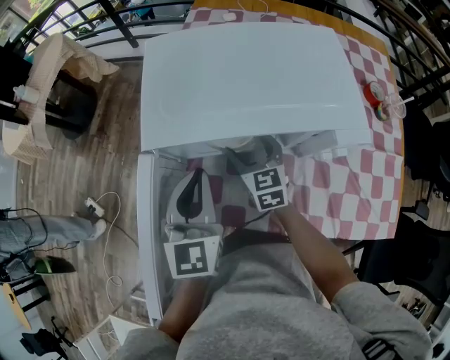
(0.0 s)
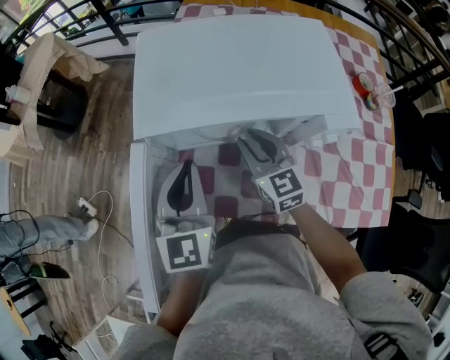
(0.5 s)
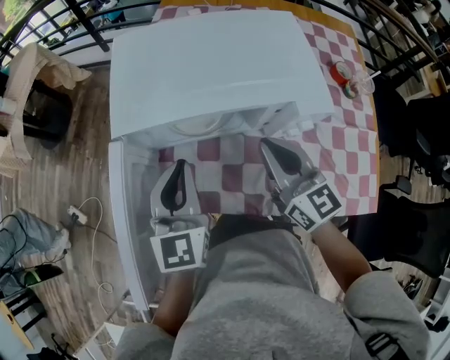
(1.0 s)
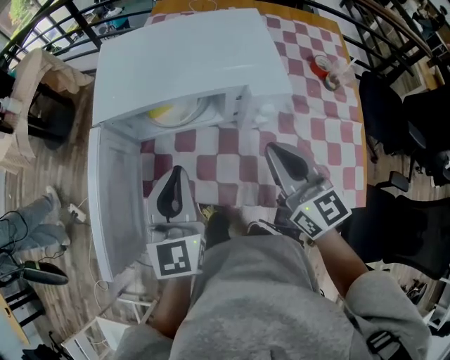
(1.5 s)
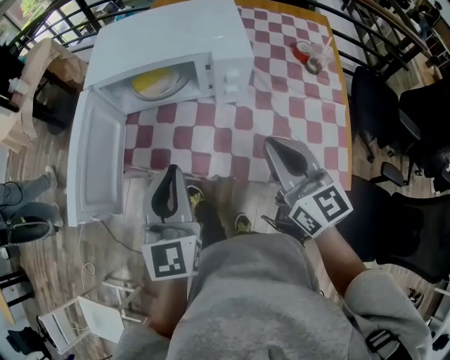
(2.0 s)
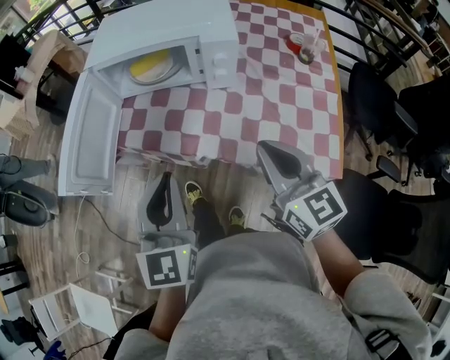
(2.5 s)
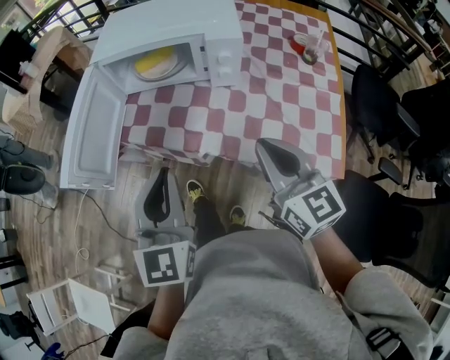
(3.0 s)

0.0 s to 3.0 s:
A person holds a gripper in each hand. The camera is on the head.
0.0 to 1.5 s: The right gripper moves backward, upward and to the right, some 30 cm, changes its angle by approximately 20 degrees, and closes up. The left gripper travels backward and to the right by about 15 cm.
1.5 to 3.0 s: Both grippers travel together backward, about 20 cm.

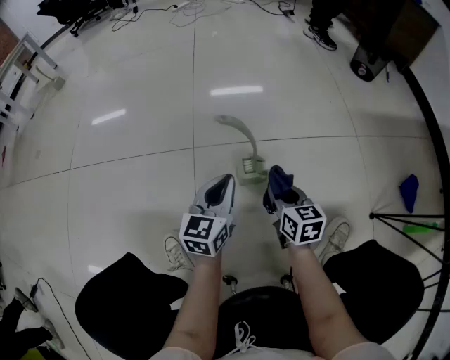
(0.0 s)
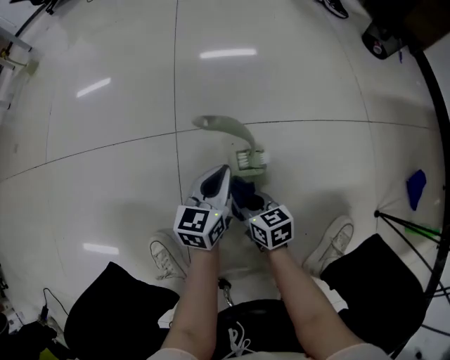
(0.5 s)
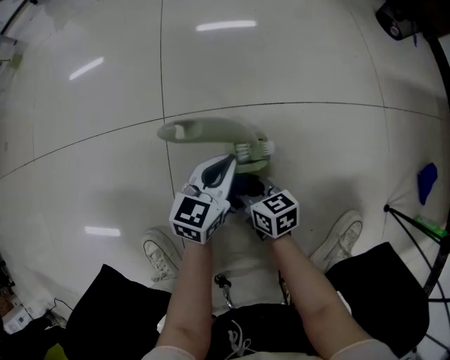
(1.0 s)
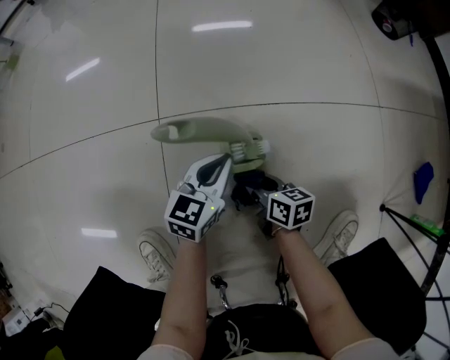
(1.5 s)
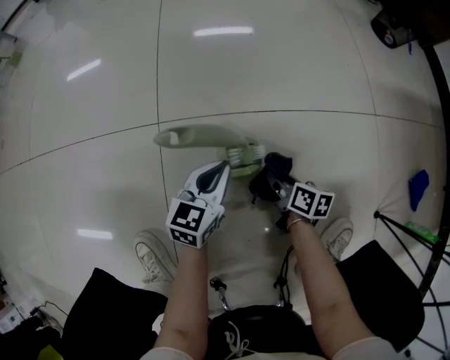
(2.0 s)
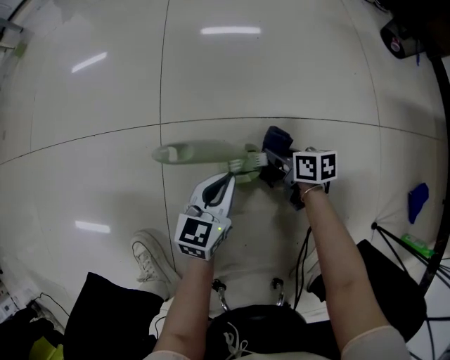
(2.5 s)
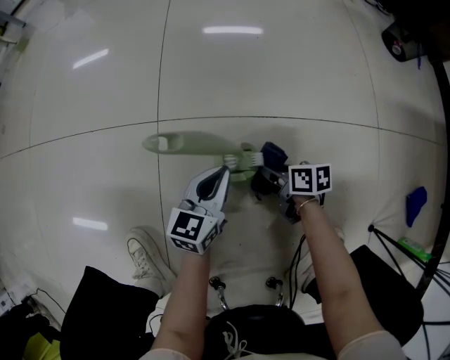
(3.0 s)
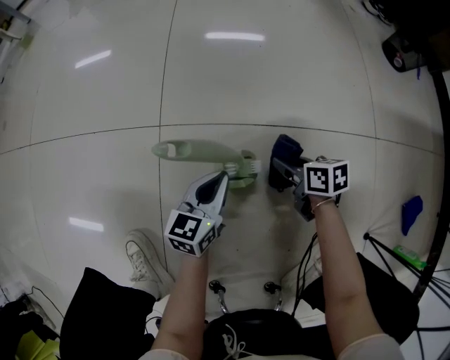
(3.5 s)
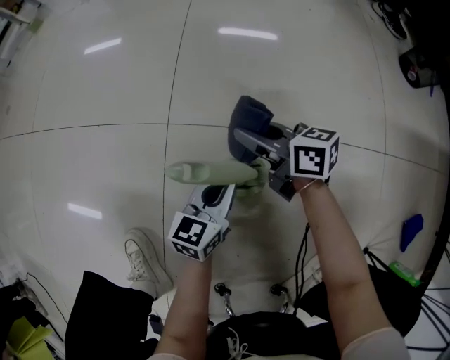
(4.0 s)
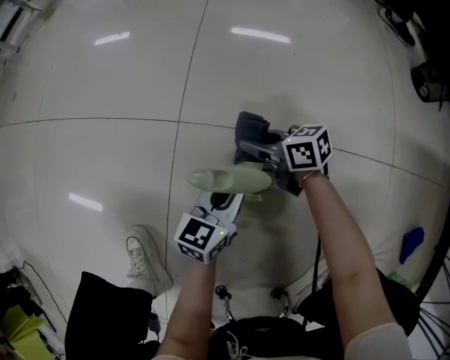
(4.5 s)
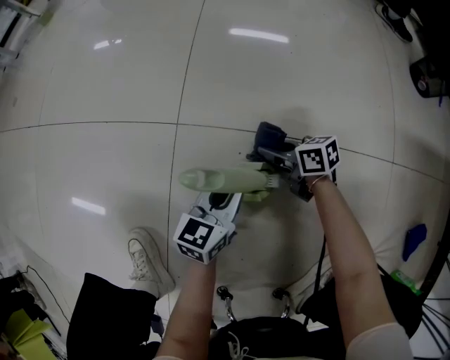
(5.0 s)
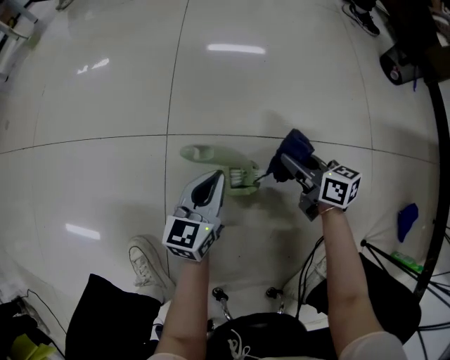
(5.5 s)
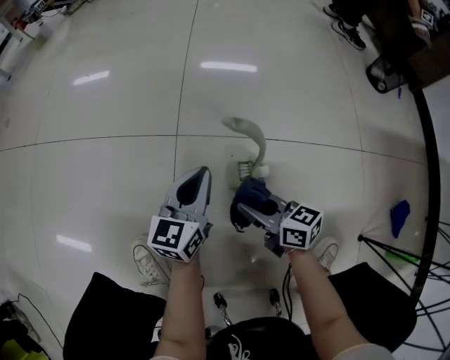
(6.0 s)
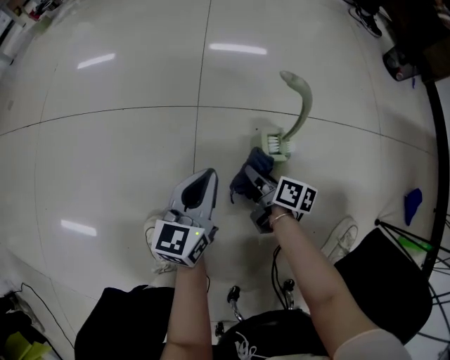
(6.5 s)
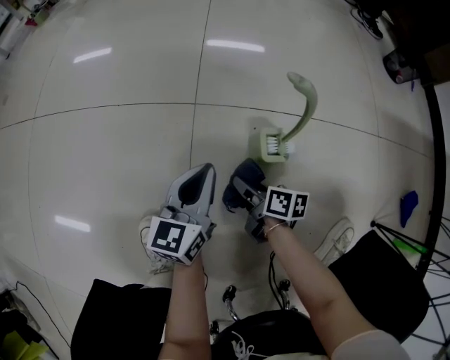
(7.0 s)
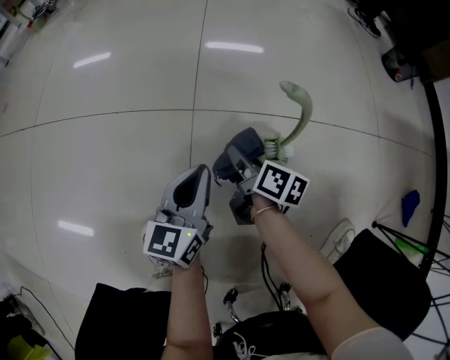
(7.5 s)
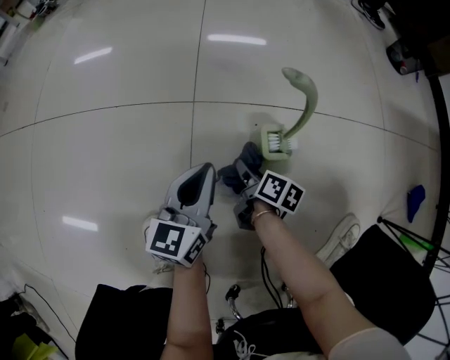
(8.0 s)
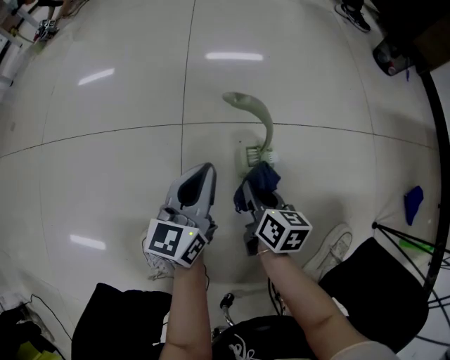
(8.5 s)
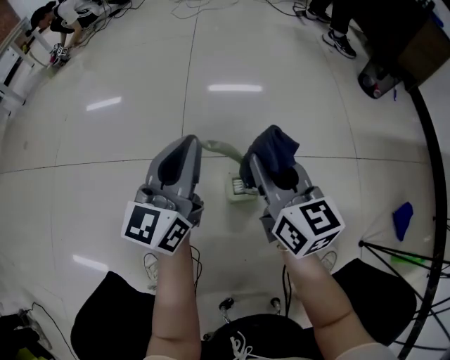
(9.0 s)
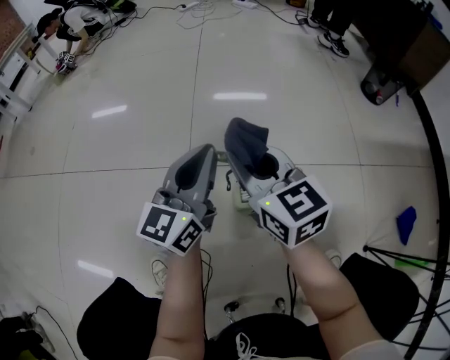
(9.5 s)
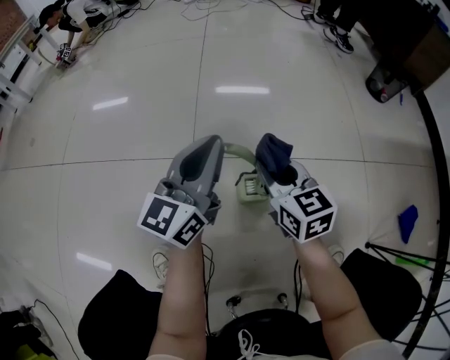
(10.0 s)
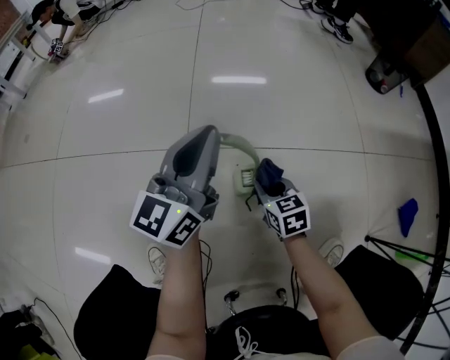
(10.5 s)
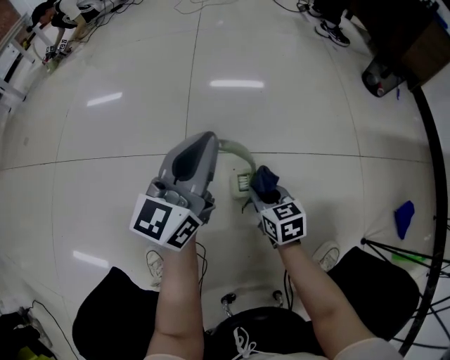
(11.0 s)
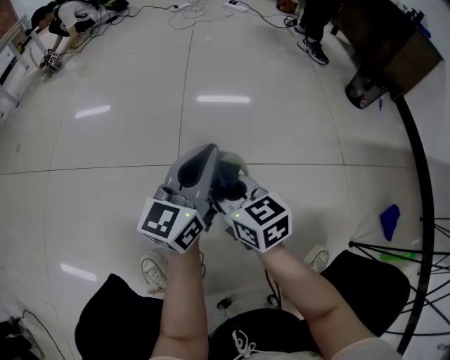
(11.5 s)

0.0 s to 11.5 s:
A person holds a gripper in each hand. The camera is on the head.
0.0 to 2.0 s: The left gripper heads downward and forward, covering approximately 15 cm. The right gripper travels downward by about 15 cm, and rotates roughly 30 degrees.
2.0 to 4.0 s: The right gripper goes forward and backward, about 15 cm each way, reversing 2 times, and rotates some 50 degrees.
4.0 to 6.0 s: The right gripper moves backward, some 20 cm. Meanwhile the left gripper goes roughly 15 cm upward and to the left.
6.0 to 7.5 s: The right gripper heads forward, downward and to the left, covering roughly 10 cm, and turns by some 40 degrees. The left gripper heads to the left, covering roughly 5 cm.
7.5 to 9.5 s: The left gripper shifts some 25 cm upward, to the right and forward. The right gripper heads upward, covering some 30 cm, and rolls counterclockwise, seen from behind, by approximately 60 degrees.
9.5 to 11.5 s: The right gripper heads to the left, covering approximately 5 cm, and travels downward and back again, about 25 cm each way.

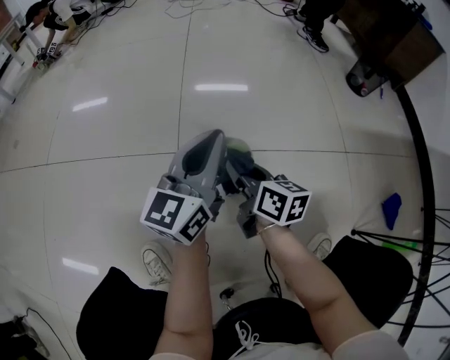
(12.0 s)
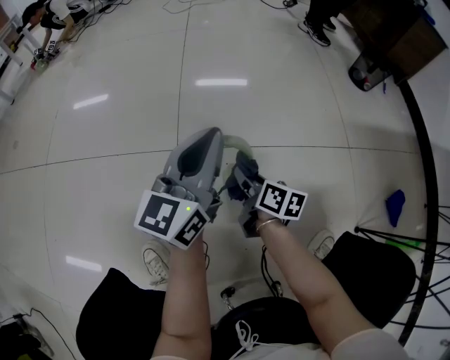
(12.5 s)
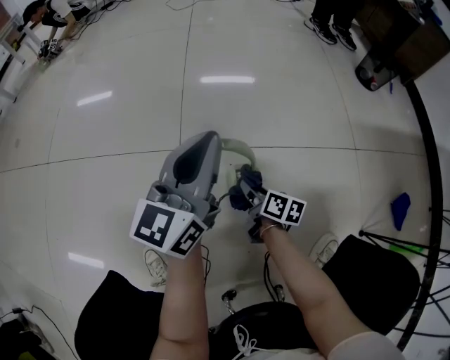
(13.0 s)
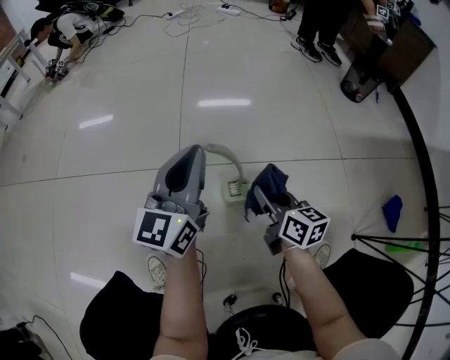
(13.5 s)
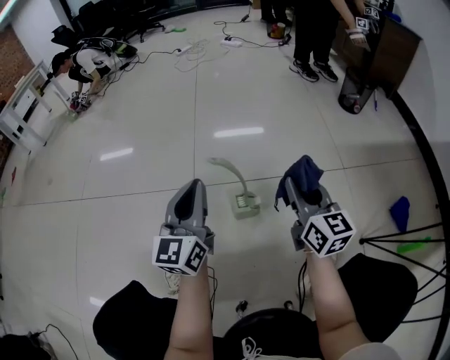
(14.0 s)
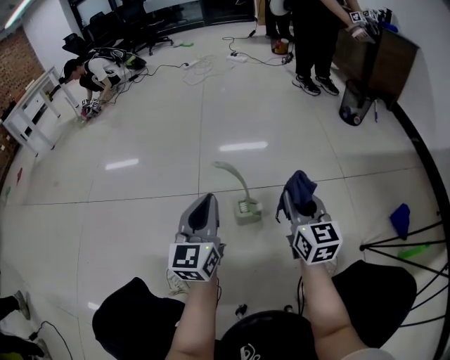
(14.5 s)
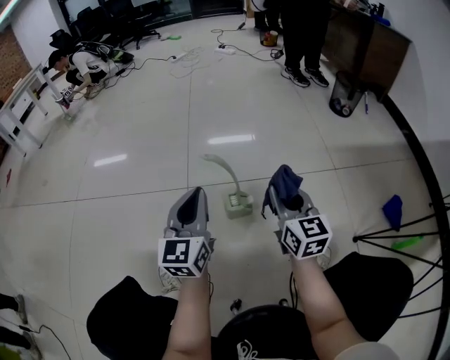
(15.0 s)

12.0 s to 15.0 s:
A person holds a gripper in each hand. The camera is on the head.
12.0 to 13.5 s: The right gripper goes about 10 cm to the right, and goes downward and returns, some 15 cm each way.
13.5 to 15.0 s: The right gripper shifts approximately 15 cm upward, to the right and backward, and swivels roughly 30 degrees. Meanwhile the left gripper heads backward, covering some 10 cm.

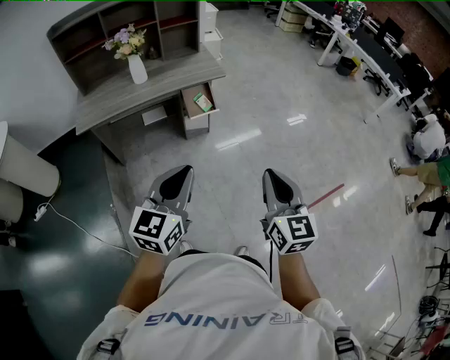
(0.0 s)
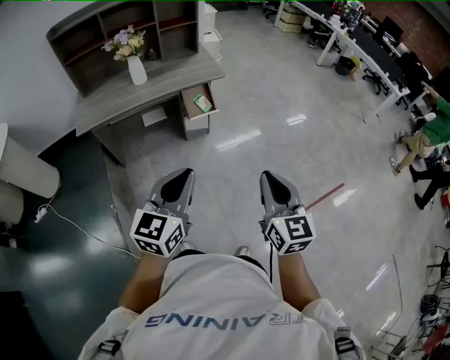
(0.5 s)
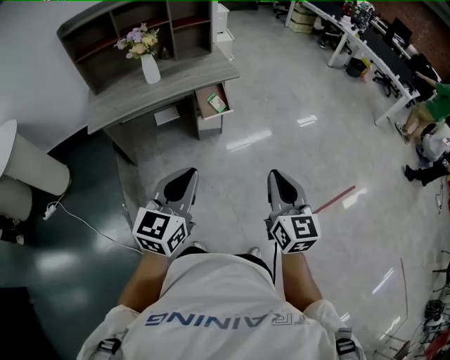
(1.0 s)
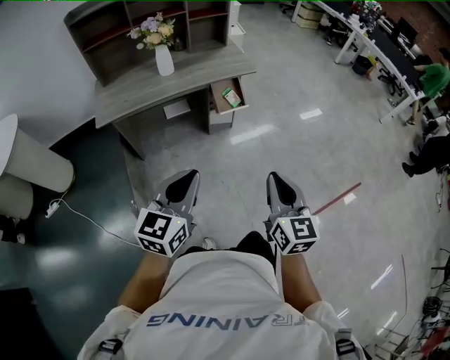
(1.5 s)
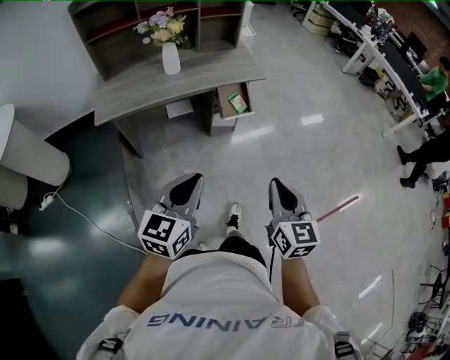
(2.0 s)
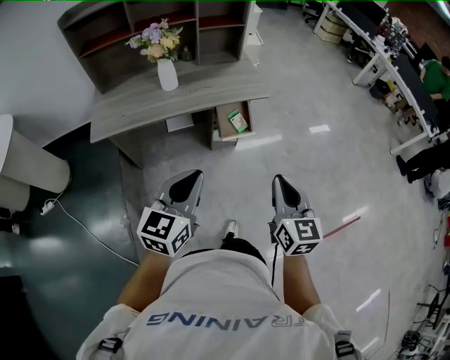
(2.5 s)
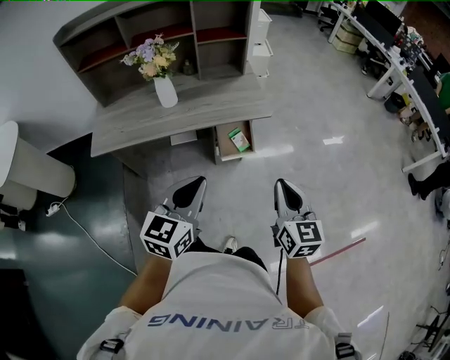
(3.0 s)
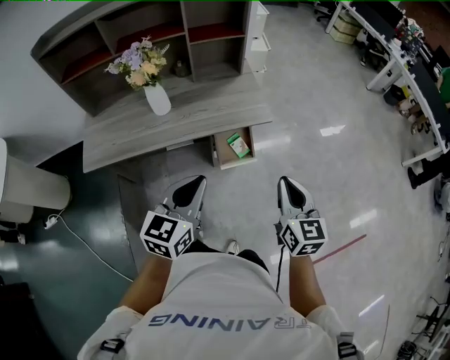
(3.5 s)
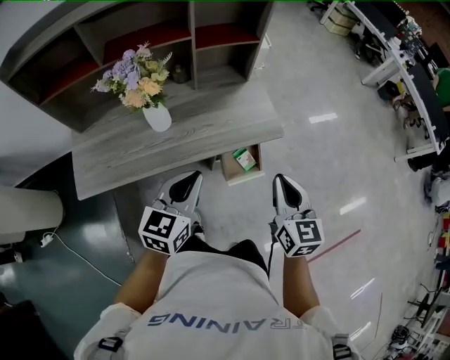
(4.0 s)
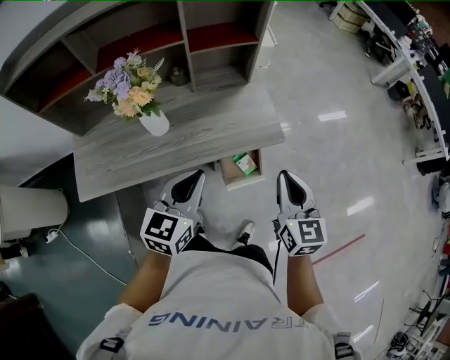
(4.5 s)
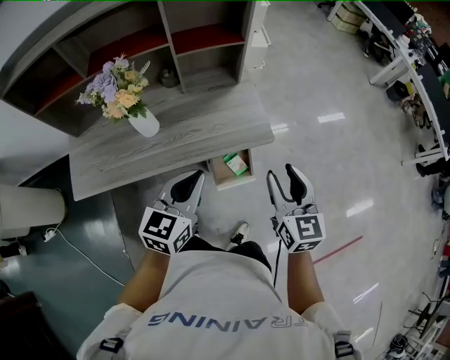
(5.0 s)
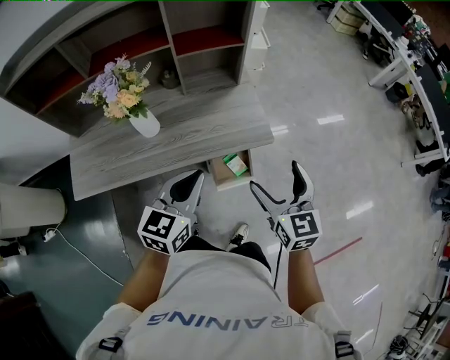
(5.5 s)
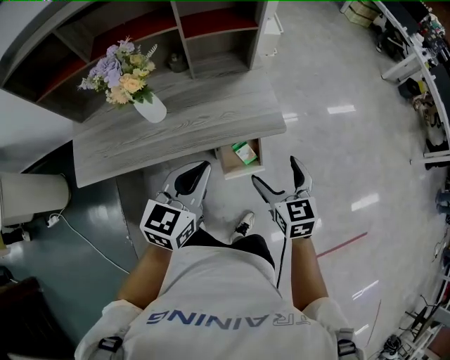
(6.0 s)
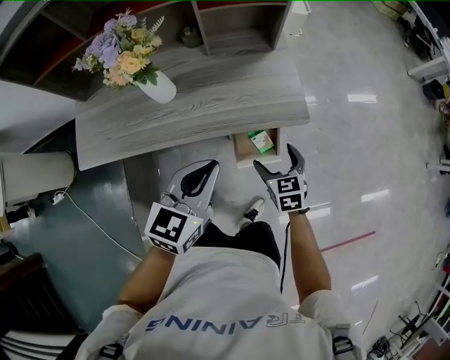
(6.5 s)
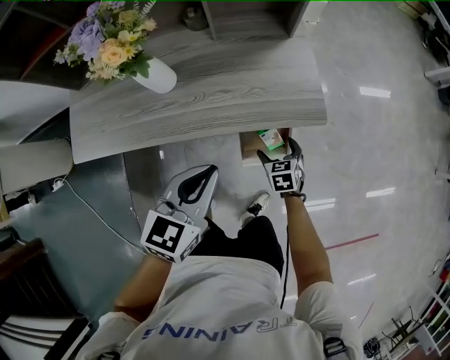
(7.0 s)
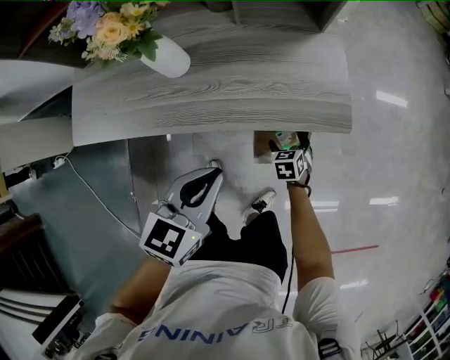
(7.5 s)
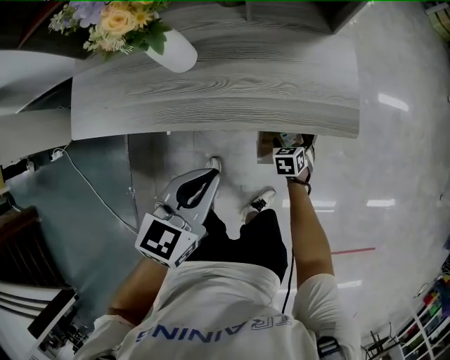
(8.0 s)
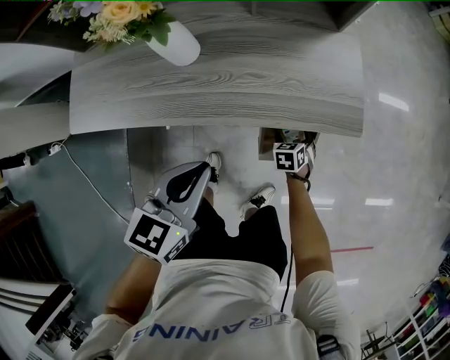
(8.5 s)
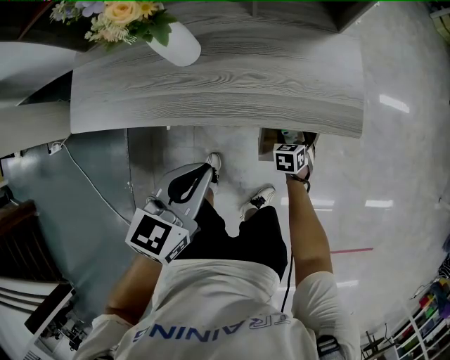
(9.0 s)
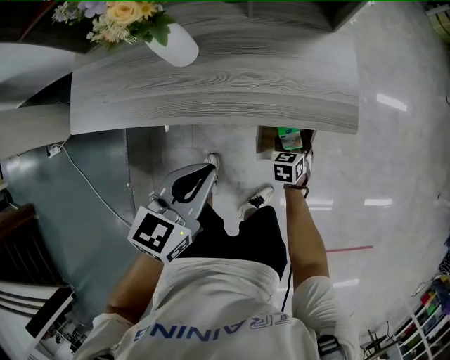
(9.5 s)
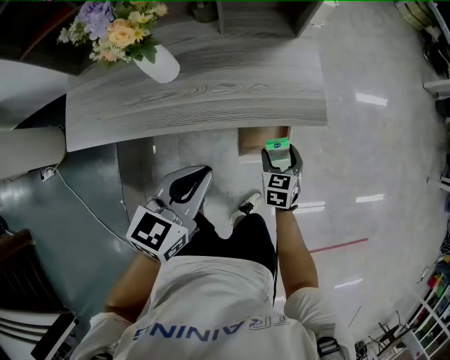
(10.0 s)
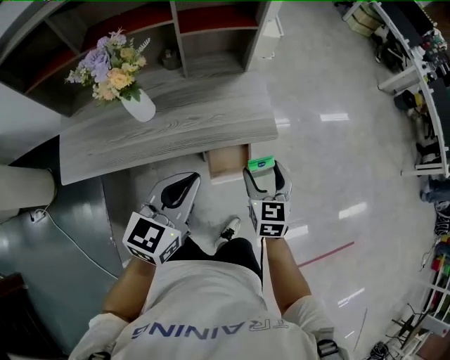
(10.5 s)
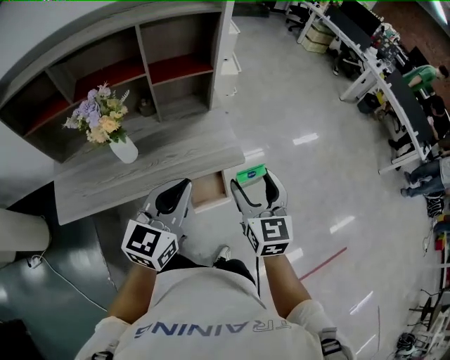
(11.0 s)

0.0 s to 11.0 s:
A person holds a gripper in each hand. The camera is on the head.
0.0 to 2.0 s: The left gripper goes some 15 cm to the left and downward. The right gripper heads to the left, downward and forward, covering some 15 cm.
2.0 to 3.5 s: Both grippers move forward, roughly 30 cm.
3.5 to 5.5 s: The grippers both shift forward by roughly 15 cm. The right gripper opens up.
5.5 to 7.5 s: The right gripper shifts about 50 cm downward, and tips its fingers downward by some 40 degrees, while the left gripper travels downward by roughly 15 cm.
7.5 to 9.0 s: There are only small adjustments of the grippers.
9.0 to 11.0 s: The left gripper travels upward and to the right by about 25 cm, and changes its angle by roughly 30 degrees, while the right gripper travels upward by roughly 50 cm, and tilts its fingers some 50 degrees upward.
